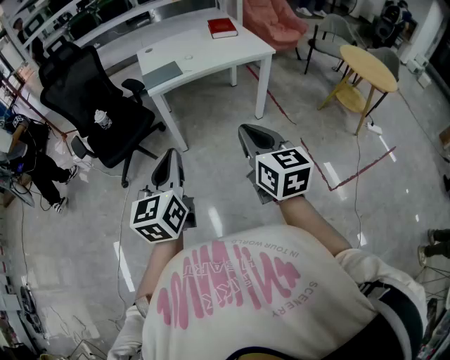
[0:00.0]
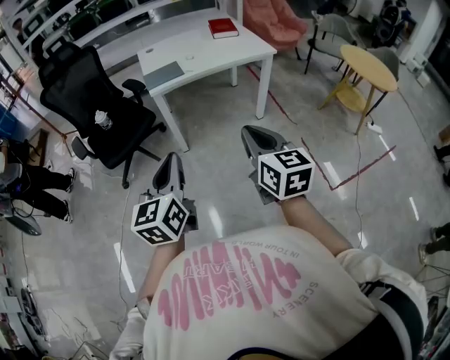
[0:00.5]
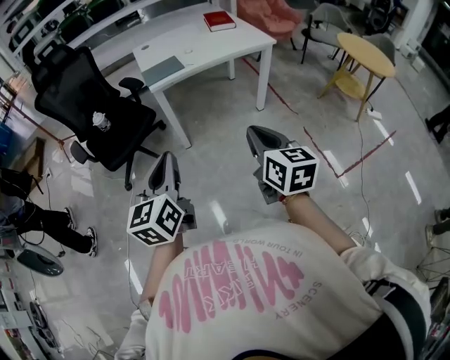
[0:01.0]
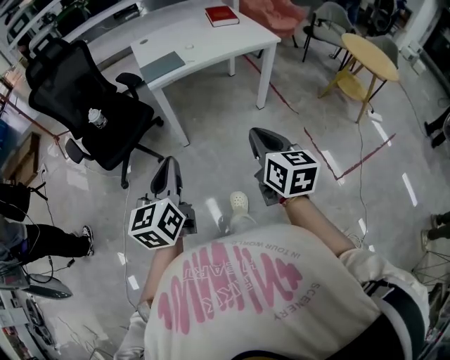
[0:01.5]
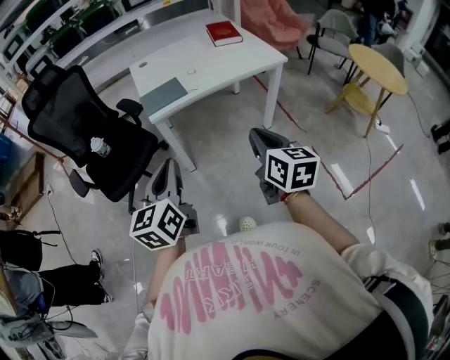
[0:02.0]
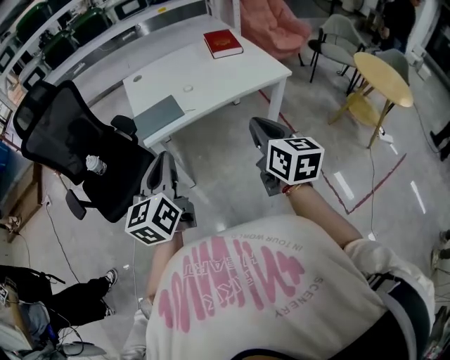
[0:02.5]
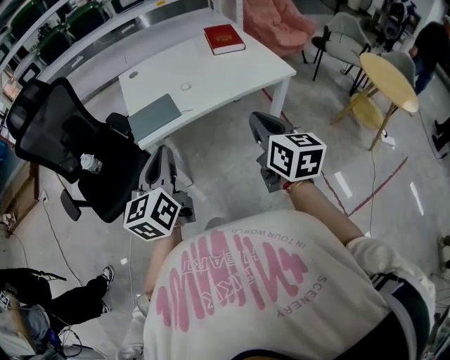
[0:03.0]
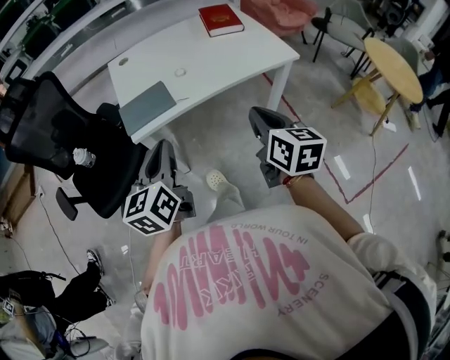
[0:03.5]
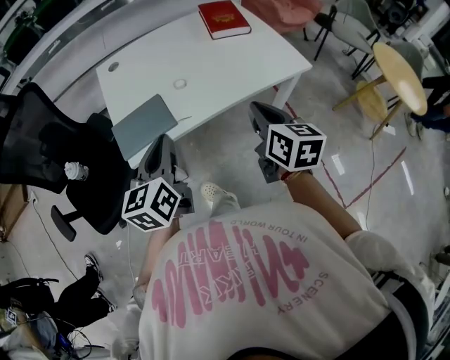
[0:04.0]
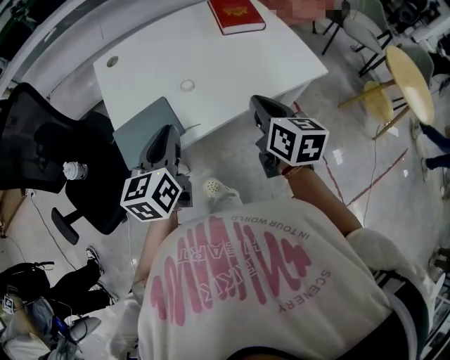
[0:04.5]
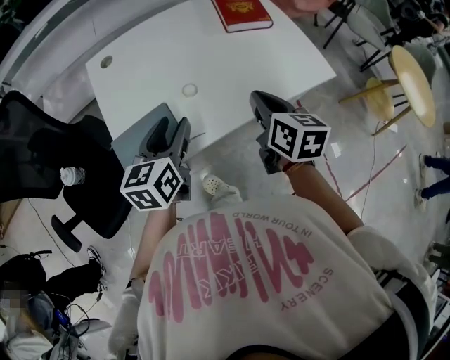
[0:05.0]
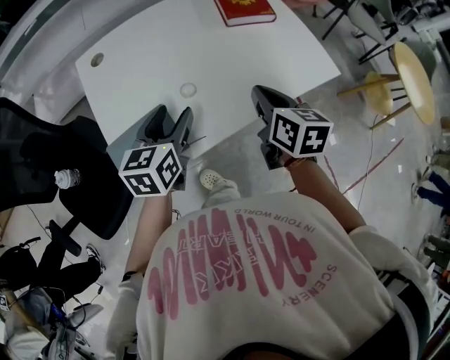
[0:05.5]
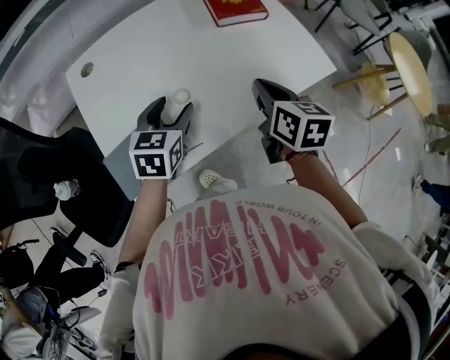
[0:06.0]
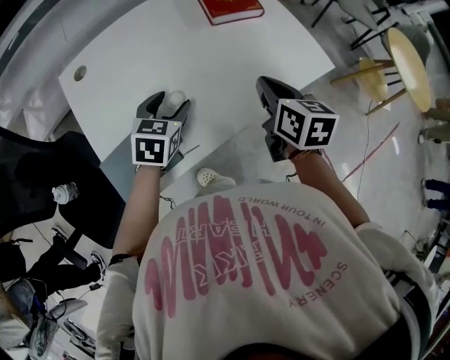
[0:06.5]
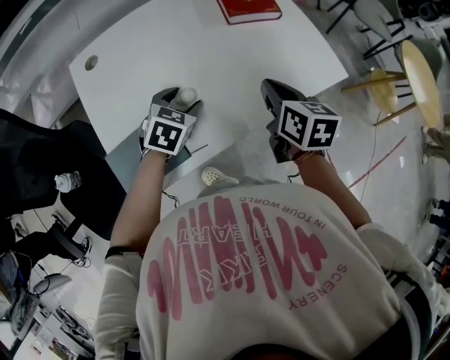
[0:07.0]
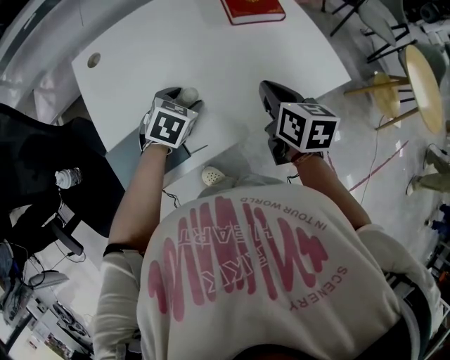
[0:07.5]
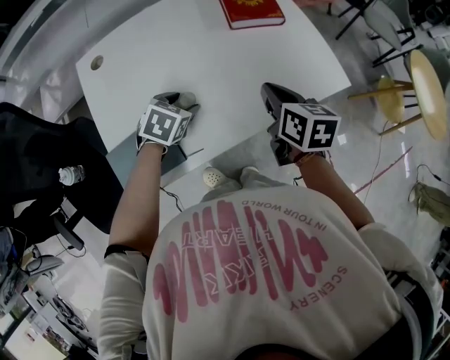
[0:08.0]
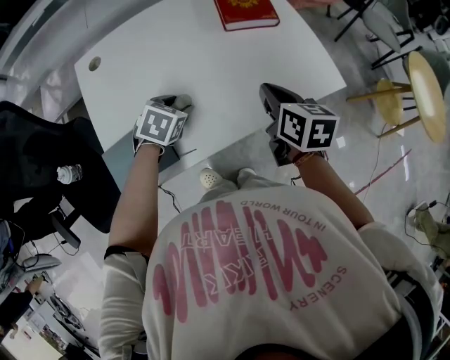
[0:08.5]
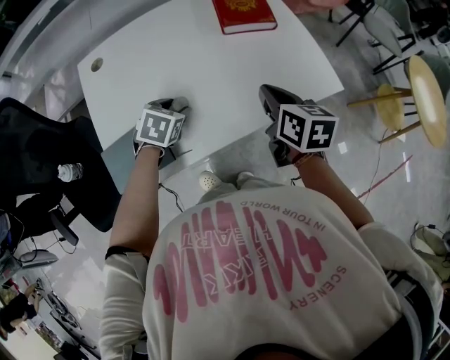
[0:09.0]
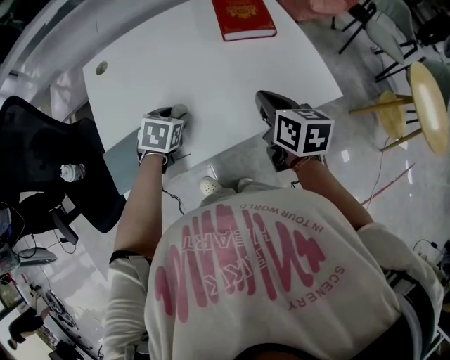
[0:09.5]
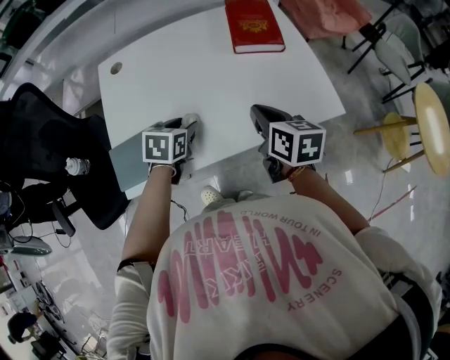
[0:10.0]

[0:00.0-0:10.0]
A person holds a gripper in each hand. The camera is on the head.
0:00.0 to 0:02.0: Both grippers travel together forward, roughly 25 cm.
0:02.0 to 0:04.0: The pair of grippers is taken forward, about 50 cm.
0:04.0 to 0:06.0: The left gripper moves forward and downward, roughly 30 cm, swivels some 30 degrees, and opens its fingers. The right gripper heads forward, covering approximately 25 cm.
0:06.0 to 0:08.0: The left gripper travels downward by some 10 cm, and turns by approximately 30 degrees; the right gripper shifts by roughly 5 cm.
0:08.0 to 0:10.0: The left gripper moves some 5 cm, and swivels roughly 30 degrees.

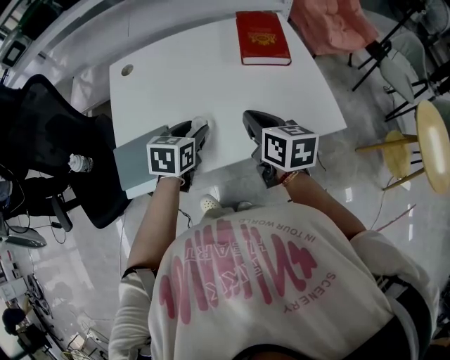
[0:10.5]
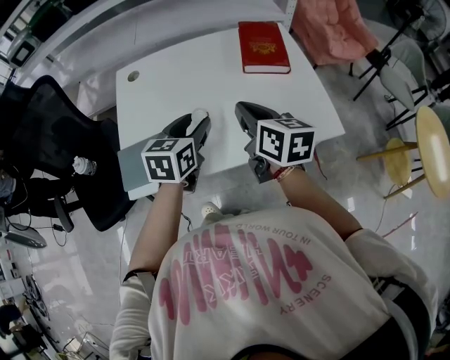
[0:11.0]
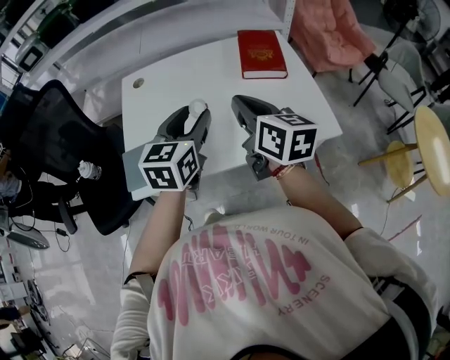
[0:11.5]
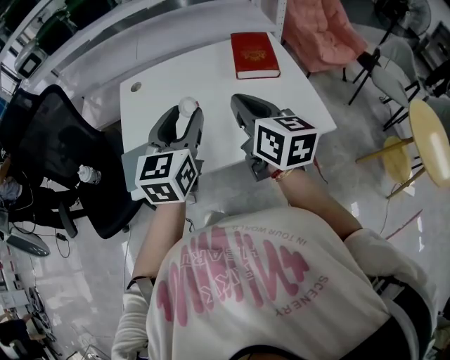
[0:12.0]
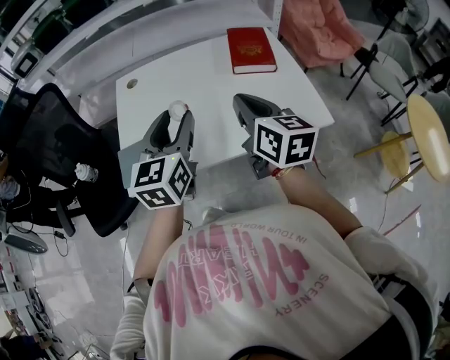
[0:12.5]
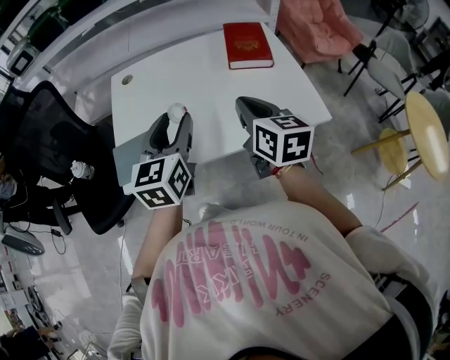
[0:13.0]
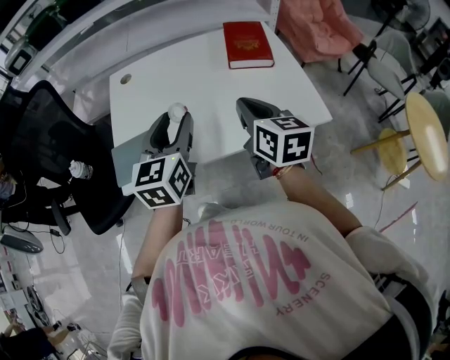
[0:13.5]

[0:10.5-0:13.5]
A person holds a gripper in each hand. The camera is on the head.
0:10.5 to 0:12.0: The left gripper heads upward, covering some 20 cm, and tips its fingers upward by roughly 30 degrees; the right gripper travels upward and backward by roughly 15 cm.
0:12.0 to 0:13.5: The right gripper shifts some 5 cm downward.

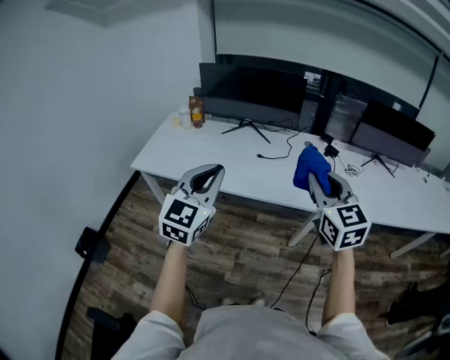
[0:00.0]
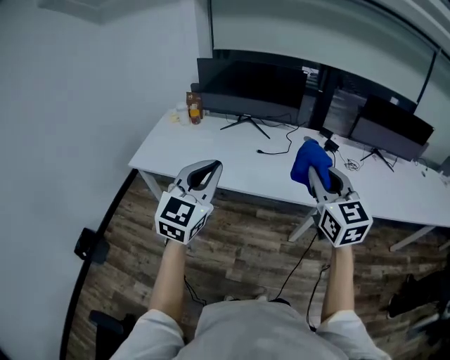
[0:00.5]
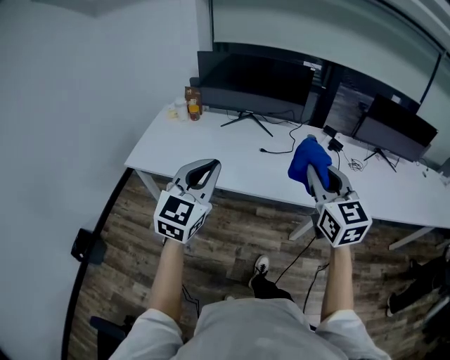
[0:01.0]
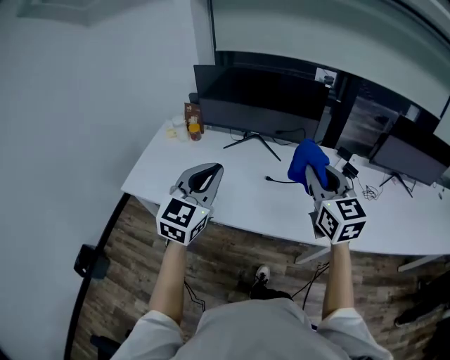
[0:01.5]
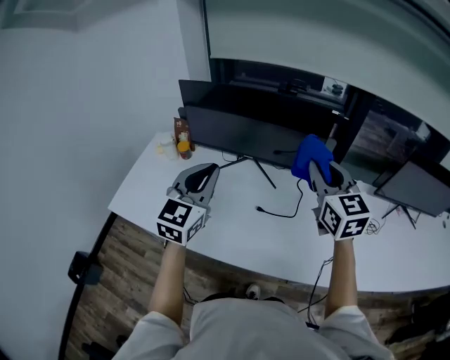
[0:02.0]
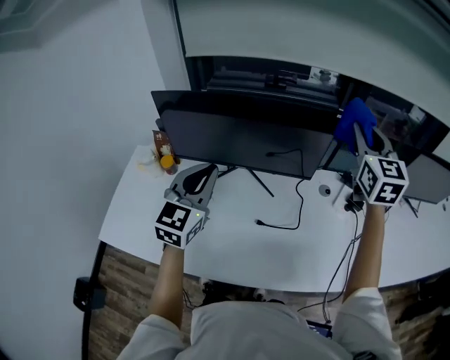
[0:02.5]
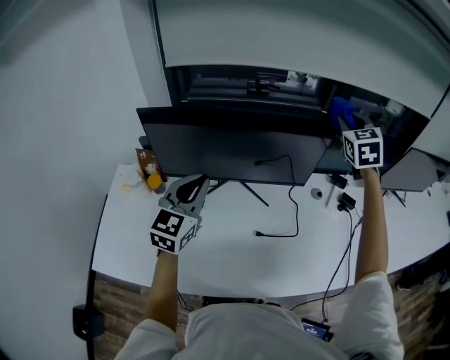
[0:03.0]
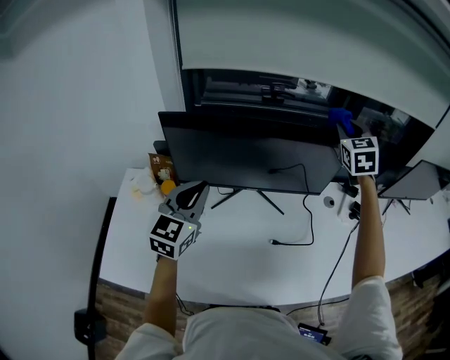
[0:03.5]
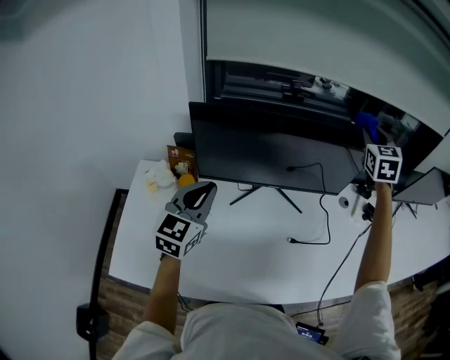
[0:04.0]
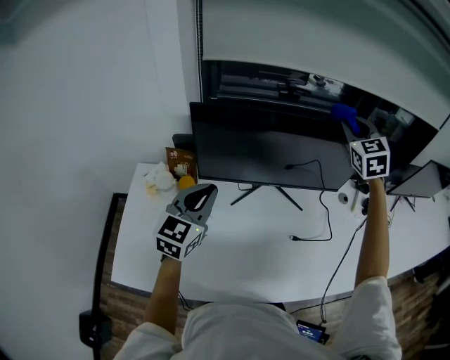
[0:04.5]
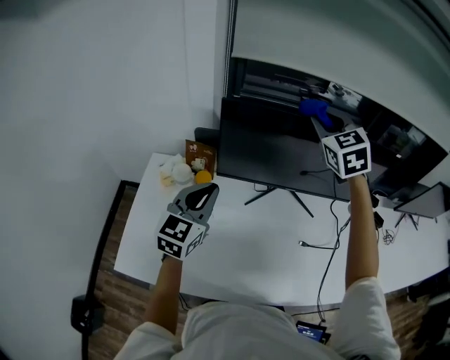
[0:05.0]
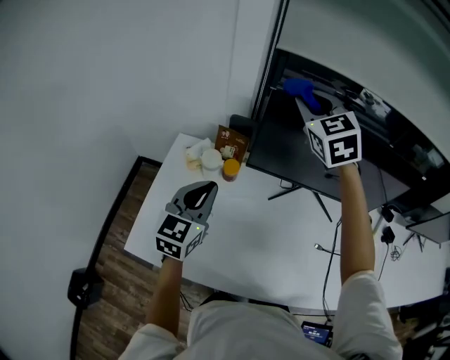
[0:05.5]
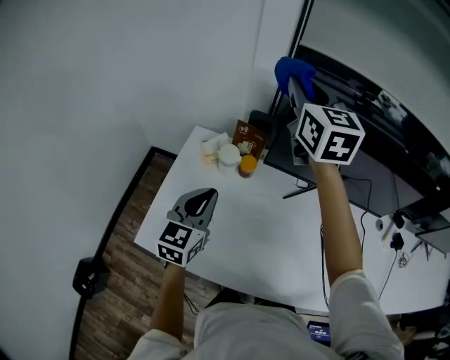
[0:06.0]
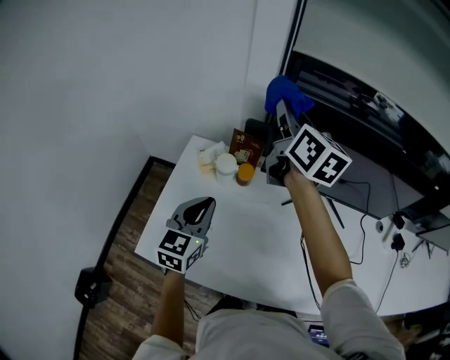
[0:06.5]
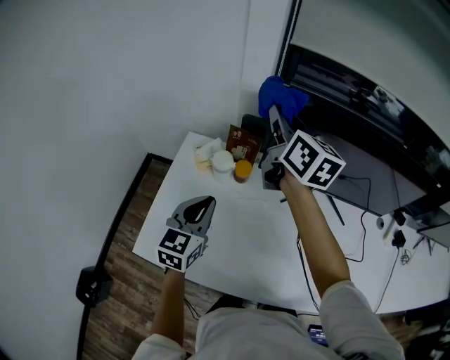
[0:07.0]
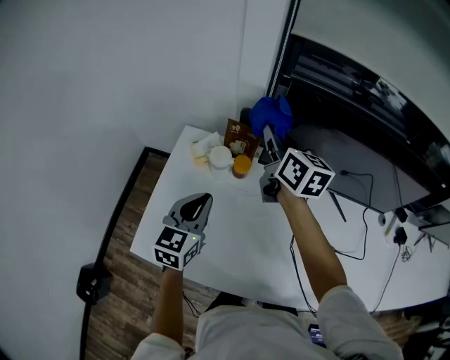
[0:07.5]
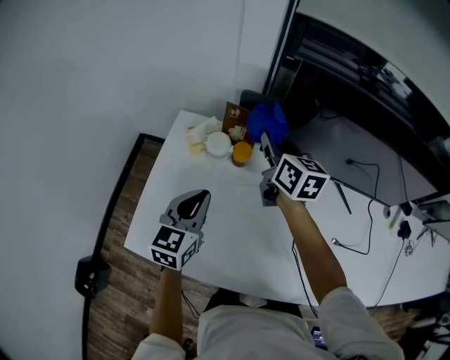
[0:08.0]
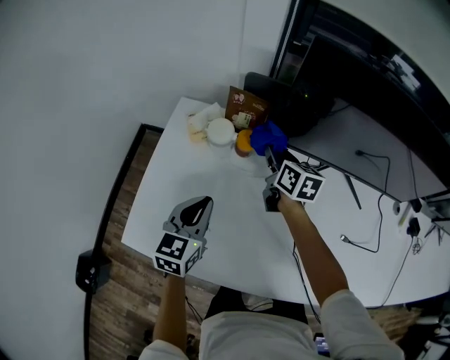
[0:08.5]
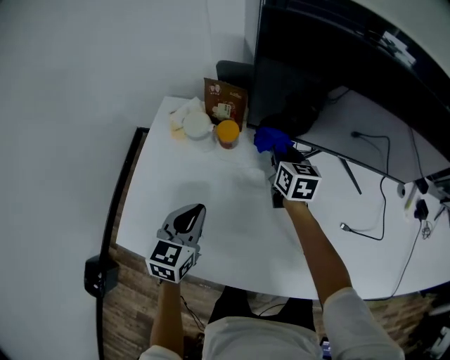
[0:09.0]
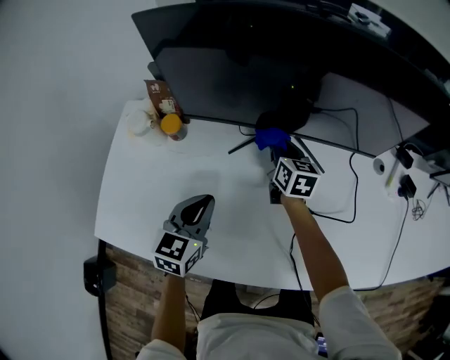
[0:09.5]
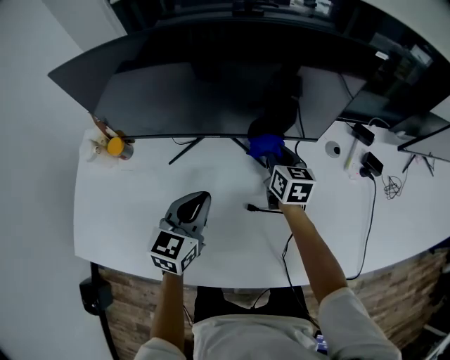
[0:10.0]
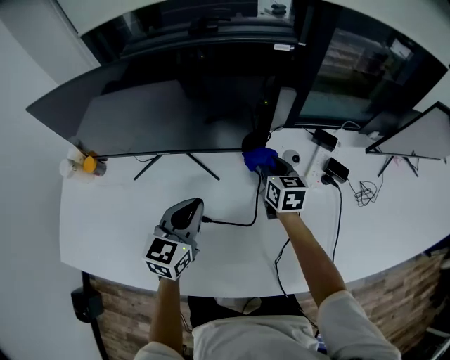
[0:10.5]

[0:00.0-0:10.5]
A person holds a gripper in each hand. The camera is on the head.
0:00.0 to 0:02.0: The two grippers travel together, forward, approximately 40 cm.
0:02.0 to 0:04.0: The right gripper moves about 30 cm, and changes its angle by about 40 degrees. Meanwhile the left gripper moves about 30 cm.
0:04.0 to 0:06.5: The left gripper ends up about 20 cm from where it was, and turns by some 20 degrees. Meanwhile the right gripper moves some 50 cm, and rotates approximately 60 degrees.
0:06.5 to 0:08.5: The left gripper is displaced downward by roughly 15 cm. The right gripper shifts some 35 cm downward, and changes its angle by some 30 degrees.
0:08.5 to 0:10.5: The pair of grippers is taken to the right, roughly 60 cm.

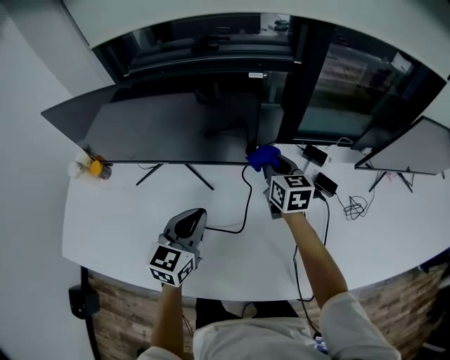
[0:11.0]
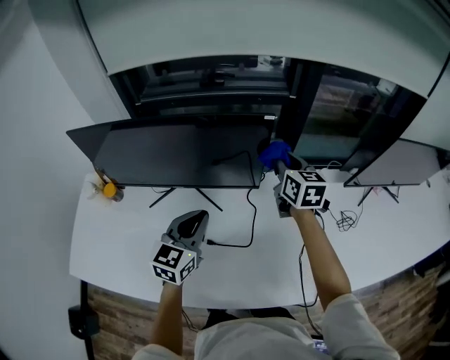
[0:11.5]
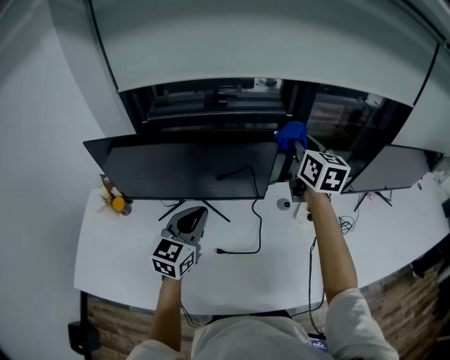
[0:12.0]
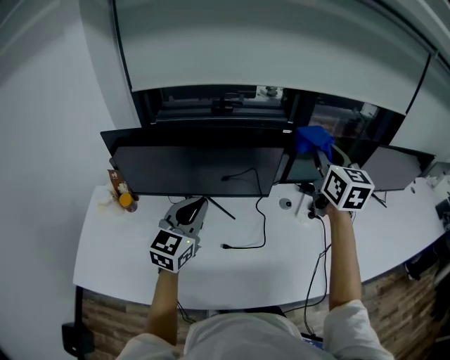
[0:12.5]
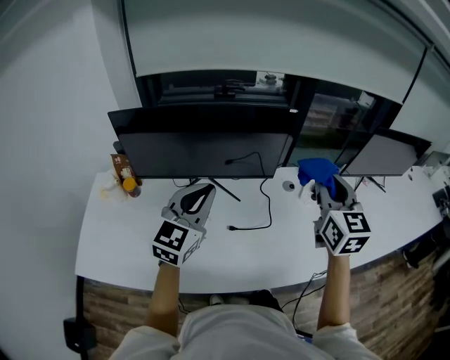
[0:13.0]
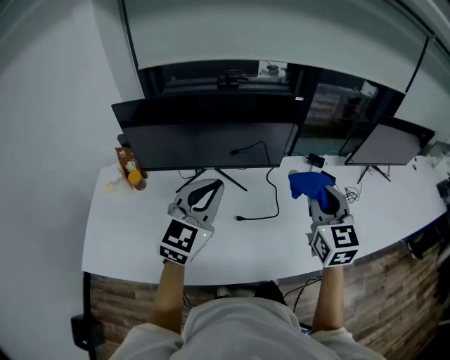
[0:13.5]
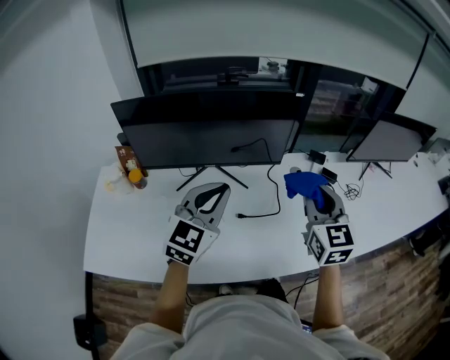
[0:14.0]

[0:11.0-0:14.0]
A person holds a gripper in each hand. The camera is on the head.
0:11.0 to 0:12.5: The left gripper goes some 20 cm upward and to the left; the right gripper moves upward, approximately 35 cm, and changes its angle by about 30 degrees.
0:12.5 to 0:14.0: The right gripper heads backward and downward, covering some 25 cm. Meanwhile the left gripper shifts approximately 10 cm backward.
